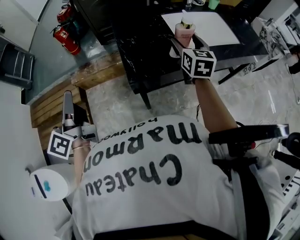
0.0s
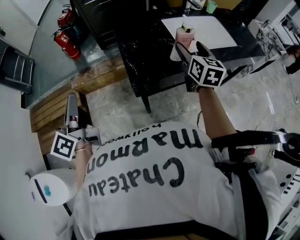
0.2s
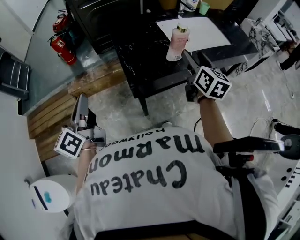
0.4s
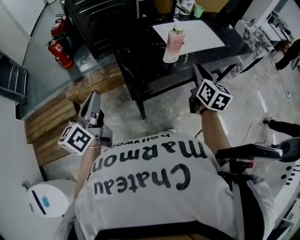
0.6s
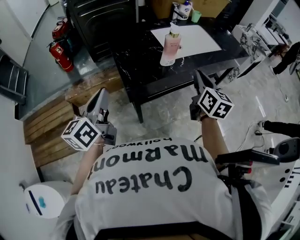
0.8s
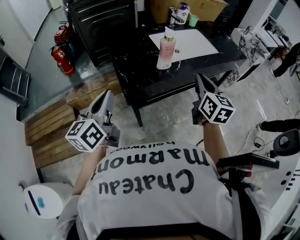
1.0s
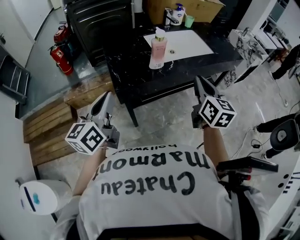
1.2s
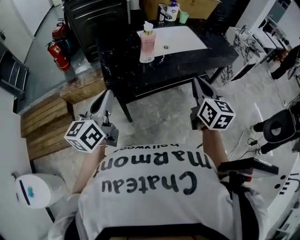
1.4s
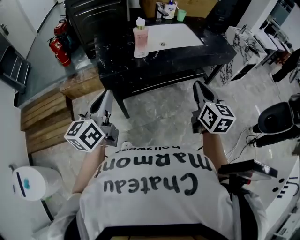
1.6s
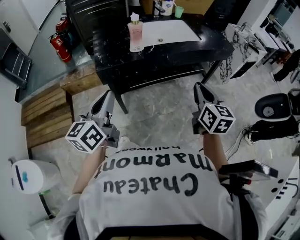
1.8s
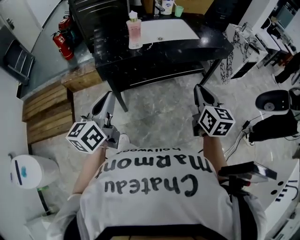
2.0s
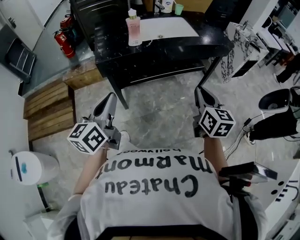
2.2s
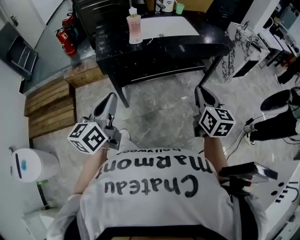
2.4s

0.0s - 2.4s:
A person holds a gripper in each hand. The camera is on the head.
0.0s - 1.2s: The left gripper moves to the right, some 20 cm, and rotates about 30 degrees. The right gripper travels backward and to the right by about 25 cm, and closes its fingers.
1.2s - 2.4s: Both grippers move to the right and backward, approximately 25 cm.

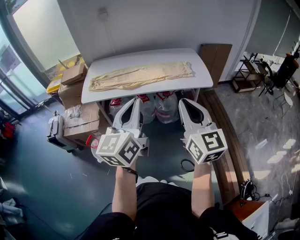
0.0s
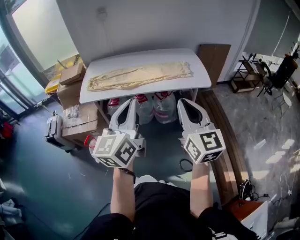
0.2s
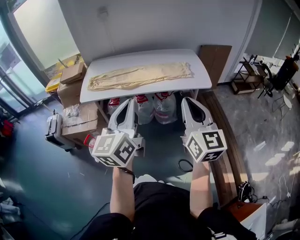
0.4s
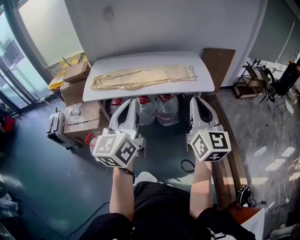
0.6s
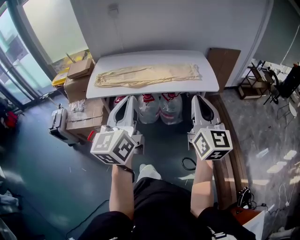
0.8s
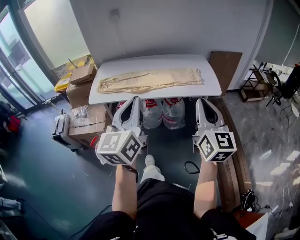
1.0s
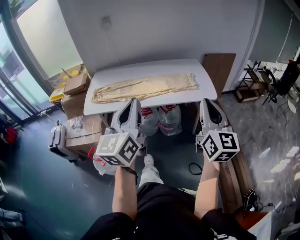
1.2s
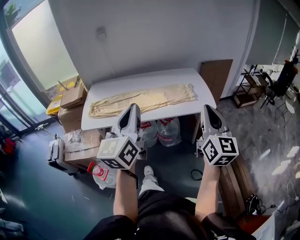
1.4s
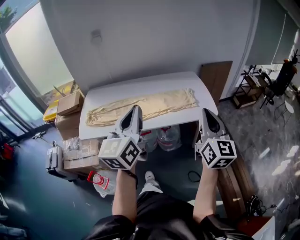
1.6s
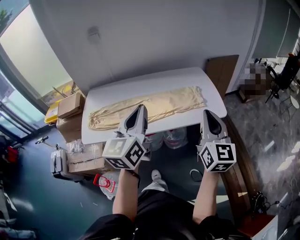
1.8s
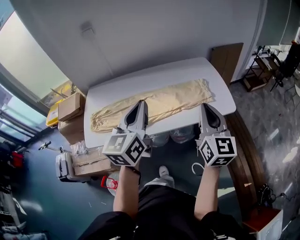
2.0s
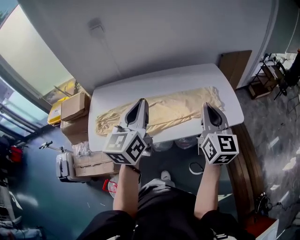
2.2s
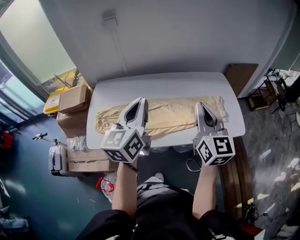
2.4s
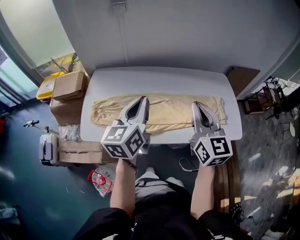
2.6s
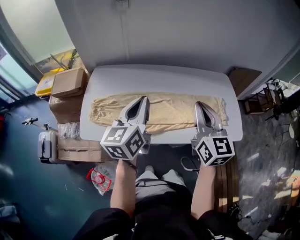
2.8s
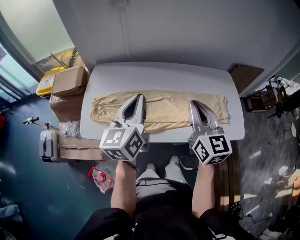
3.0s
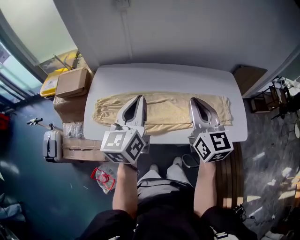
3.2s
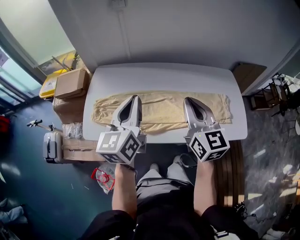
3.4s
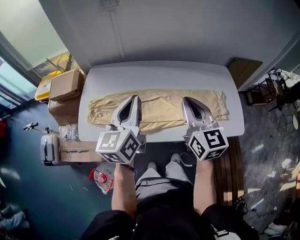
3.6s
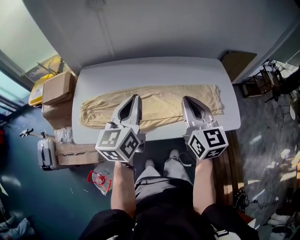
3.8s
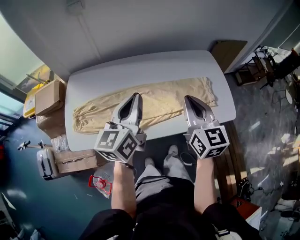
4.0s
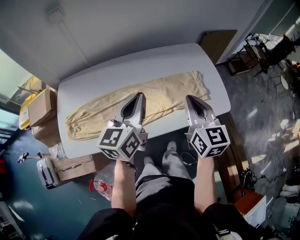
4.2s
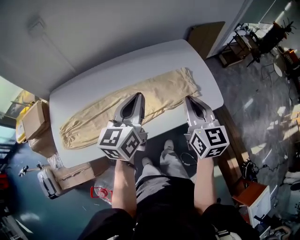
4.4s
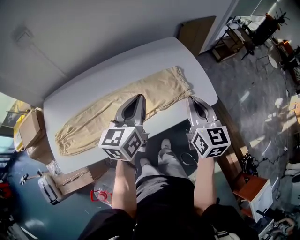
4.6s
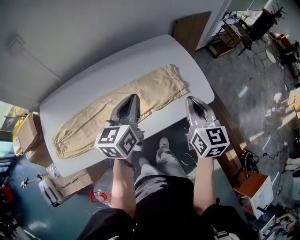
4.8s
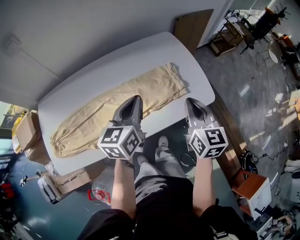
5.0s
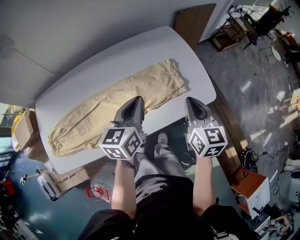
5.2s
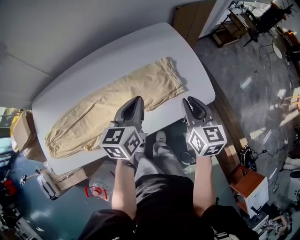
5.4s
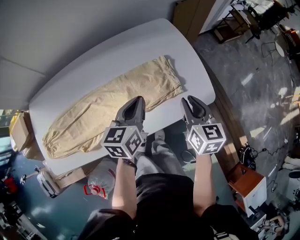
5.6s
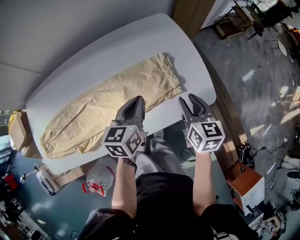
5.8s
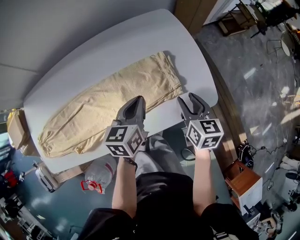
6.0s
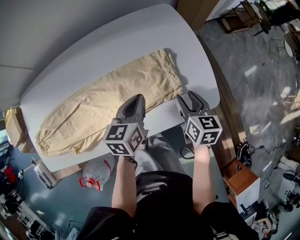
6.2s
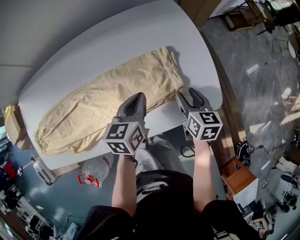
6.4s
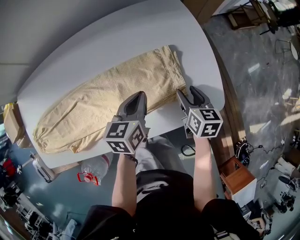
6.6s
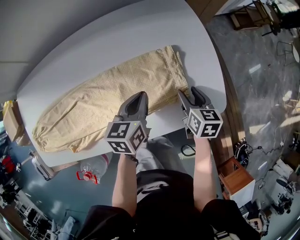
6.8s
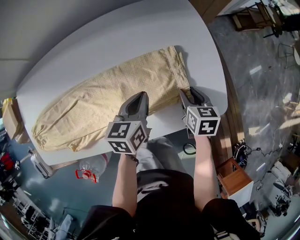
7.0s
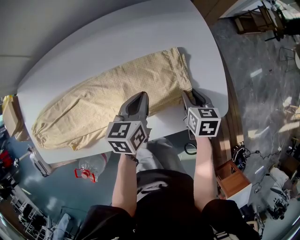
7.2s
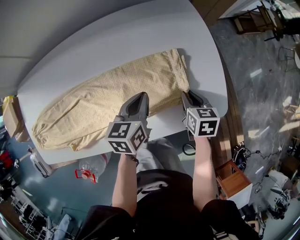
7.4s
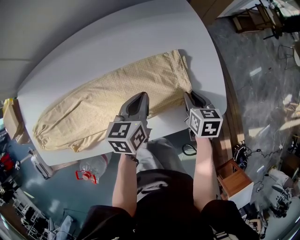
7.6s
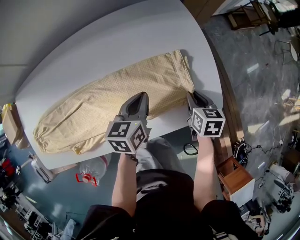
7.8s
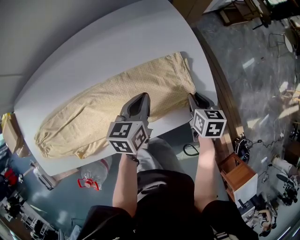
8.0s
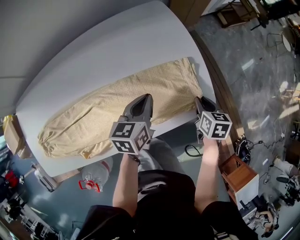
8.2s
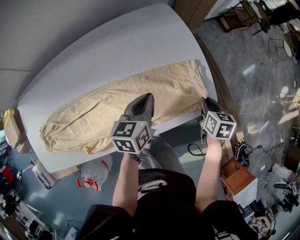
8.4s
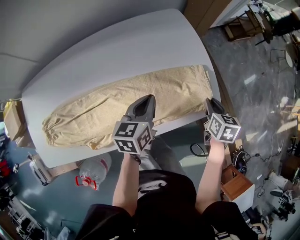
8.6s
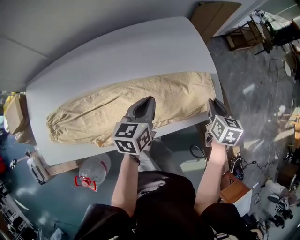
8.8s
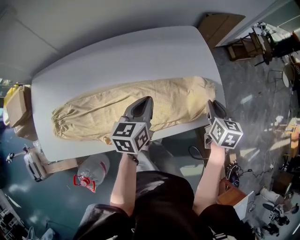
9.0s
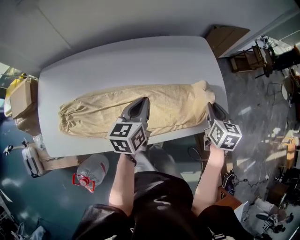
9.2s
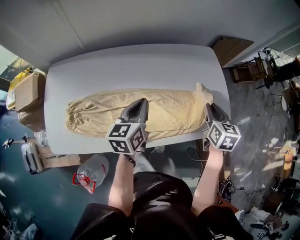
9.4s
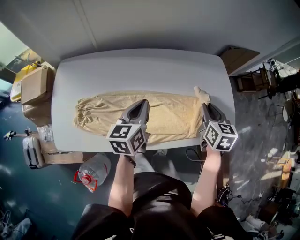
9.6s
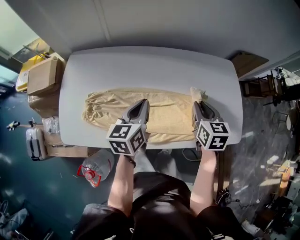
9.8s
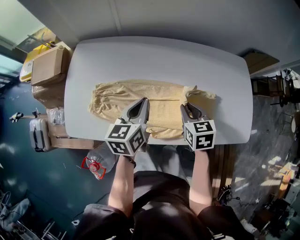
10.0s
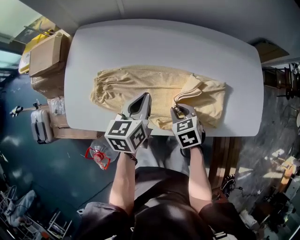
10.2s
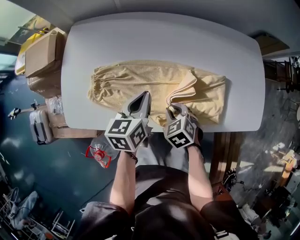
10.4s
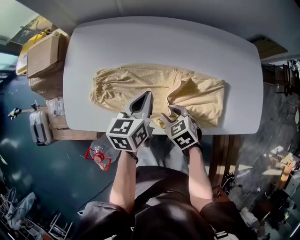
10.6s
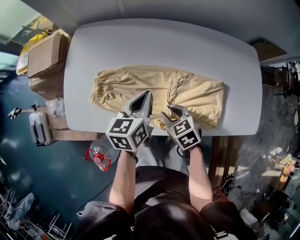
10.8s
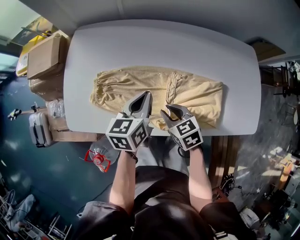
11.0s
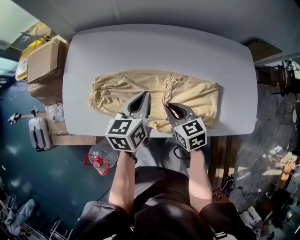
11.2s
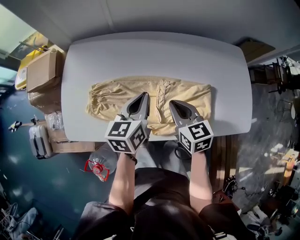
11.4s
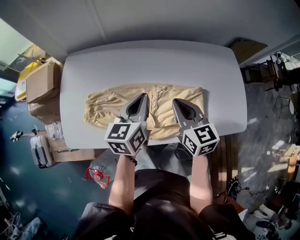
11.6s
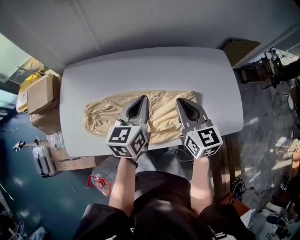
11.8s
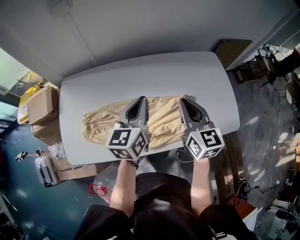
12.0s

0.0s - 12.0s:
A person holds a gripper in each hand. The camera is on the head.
0.0s - 1.6s: The two grippers go approximately 20 cm forward.
1.6s - 3.0s: The grippers both shift forward and to the left by about 35 cm. The right gripper swivels some 20 degrees.
3.0s - 4.4s: The right gripper changes place by roughly 20 cm, and swivels approximately 20 degrees; the left gripper changes place by about 25 cm, and rotates roughly 30 degrees.
4.4s - 6.0s: Both grippers travel together downward, to the right and forward, some 30 cm. The left gripper rotates roughly 20 degrees. Meanwhile the right gripper changes its angle by roughly 20 degrees, and opens.
6.0s - 7.6s: The left gripper moves downward, some 5 cm. Meanwhile the right gripper shifts about 10 cm downward, and closes up.
7.6s - 9.0s: The left gripper goes about 15 cm upward, to the left and backward. The right gripper moves upward, about 15 cm.
9.0s - 10.4s: The right gripper shifts by roughly 50 cm, and rotates around the line of its fingers by about 50 degrees, counterclockwise from behind, while the left gripper moves roughly 35 cm.
10.4s - 12.0s: The left gripper heads upward and to the right, covering roughly 20 cm, and swivels about 20 degrees. Meanwhile the right gripper travels upward and to the right by approximately 30 cm, and points its fingers roughly 50 degrees further upward.

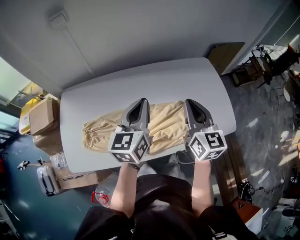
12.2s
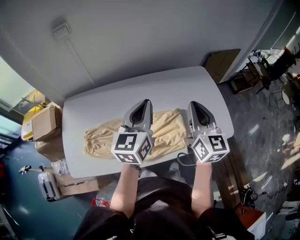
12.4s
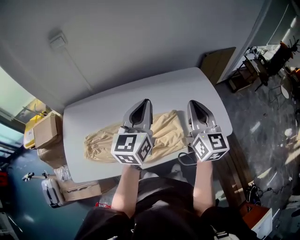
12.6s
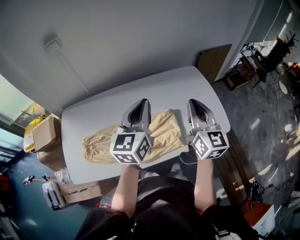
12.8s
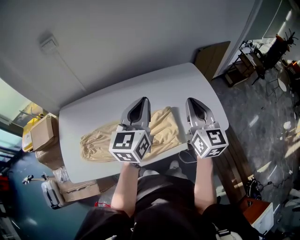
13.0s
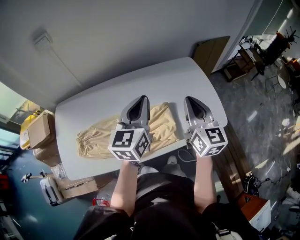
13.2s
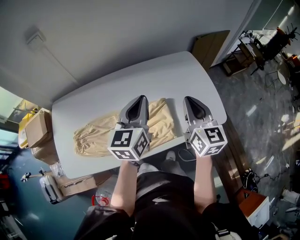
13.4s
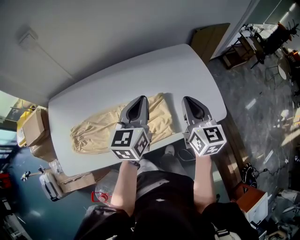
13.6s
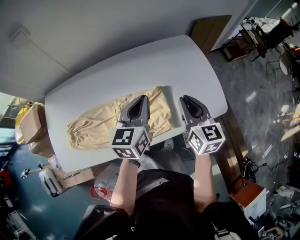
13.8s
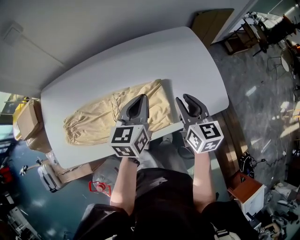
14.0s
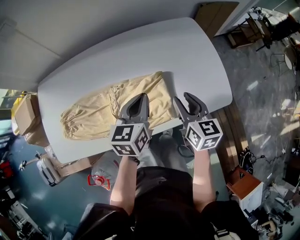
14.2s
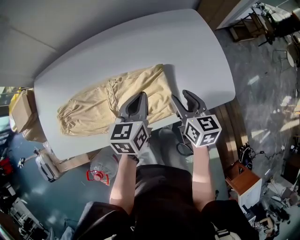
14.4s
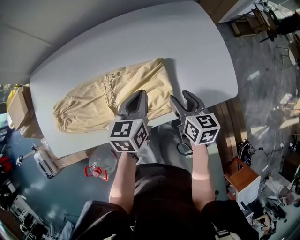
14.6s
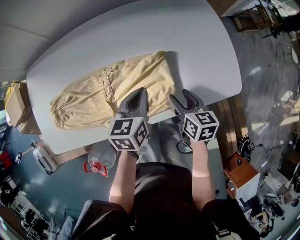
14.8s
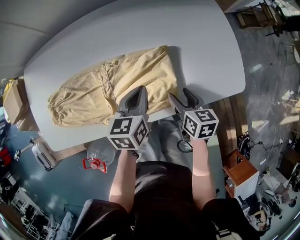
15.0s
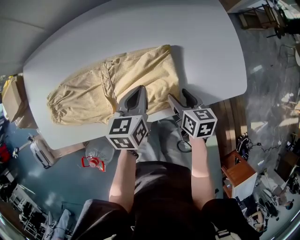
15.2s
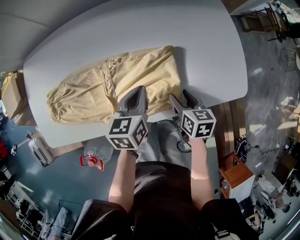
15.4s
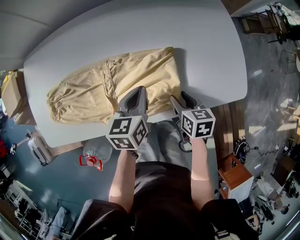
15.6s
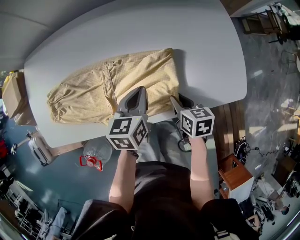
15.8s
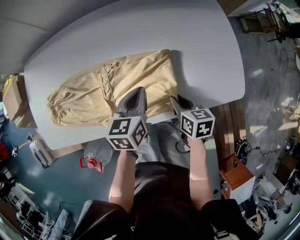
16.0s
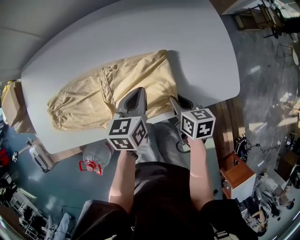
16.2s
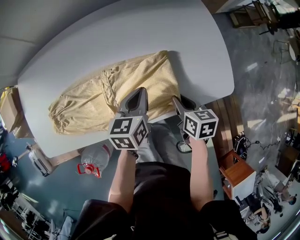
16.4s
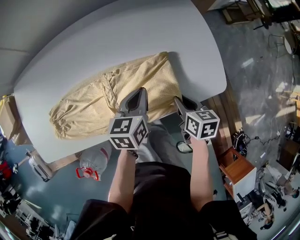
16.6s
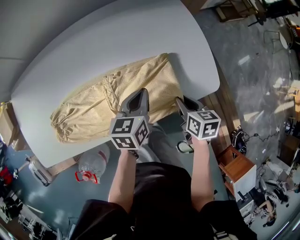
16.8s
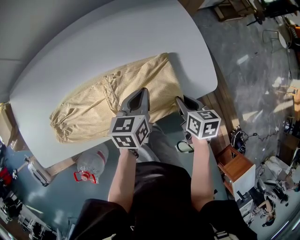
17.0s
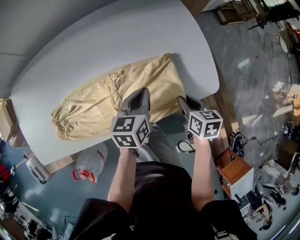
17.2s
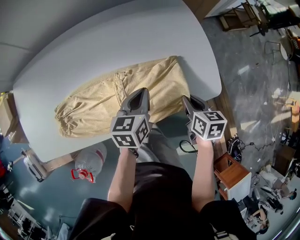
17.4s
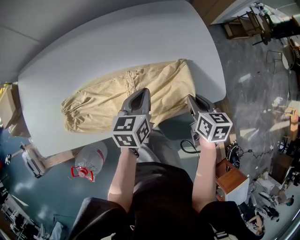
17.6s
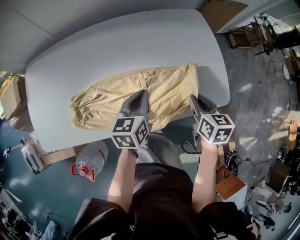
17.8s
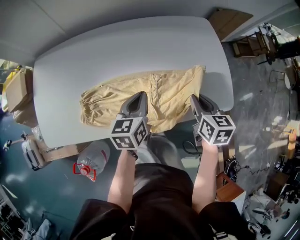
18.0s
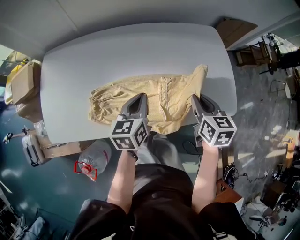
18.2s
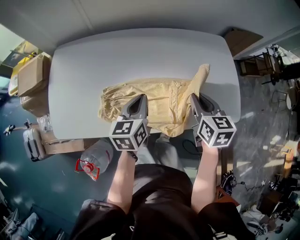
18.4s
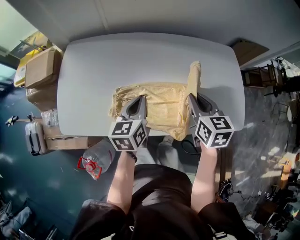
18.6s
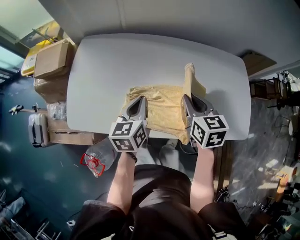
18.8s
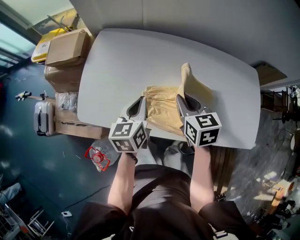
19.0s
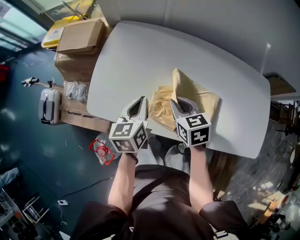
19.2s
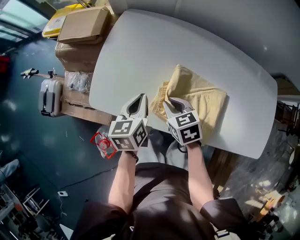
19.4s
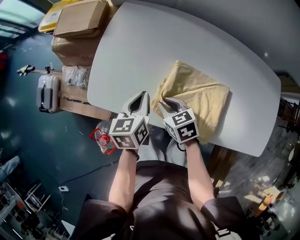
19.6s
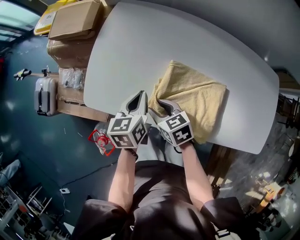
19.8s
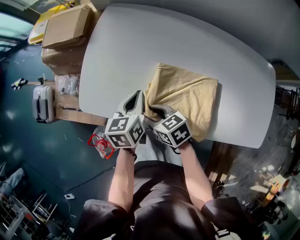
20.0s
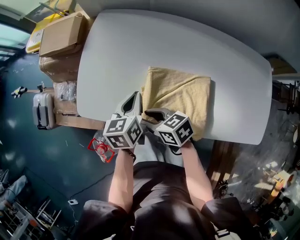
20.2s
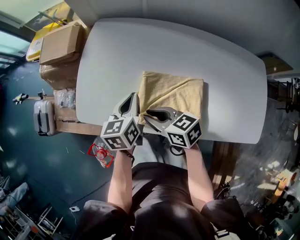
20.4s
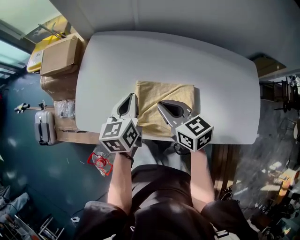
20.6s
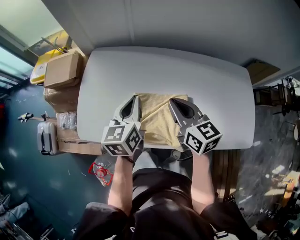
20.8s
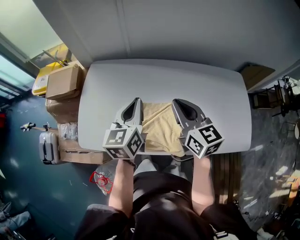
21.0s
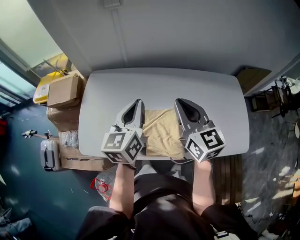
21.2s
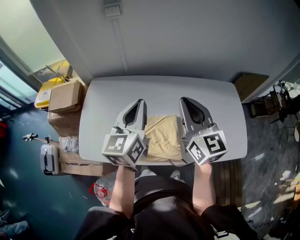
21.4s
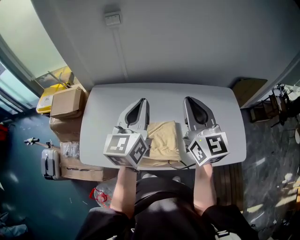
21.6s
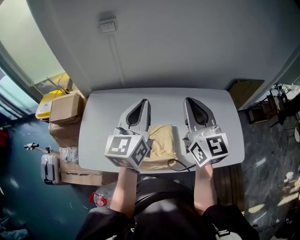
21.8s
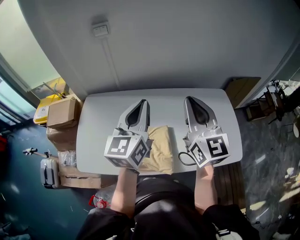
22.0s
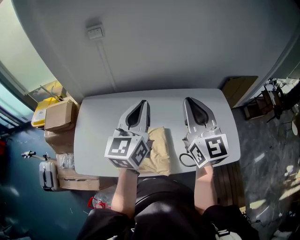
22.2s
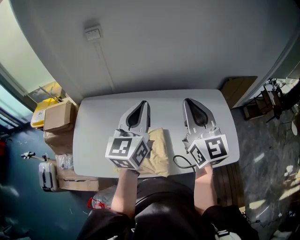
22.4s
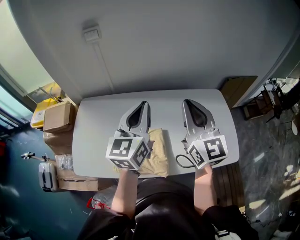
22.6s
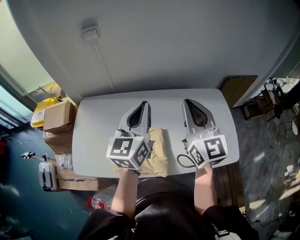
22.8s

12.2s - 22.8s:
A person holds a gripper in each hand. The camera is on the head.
12.2s - 13.8s: The left gripper travels to the right by some 15 cm. The right gripper shifts approximately 15 cm to the right and downward.
13.8s - 15.2s: Both grippers travel together downward, about 20 cm. The left gripper rotates roughly 20 degrees. Meanwhile the right gripper turns by some 30 degrees, and opens.
15.2s - 16.8s: Both grippers move to the right, roughly 15 cm. The right gripper closes.
16.8s - 18.2s: The right gripper shifts about 25 cm to the left and upward, and turns by some 20 degrees; the left gripper is displaced to the left by approximately 20 cm.
18.2s - 19.8s: The left gripper ends up roughly 35 cm from where it was, and rotates roughly 30 degrees. Meanwhile the right gripper changes place by approximately 50 cm, turns by roughly 50 degrees, and opens up.
19.8s - 21.2s: Both grippers move upward, about 30 cm. The left gripper rotates approximately 30 degrees; the right gripper points its fingers about 40 degrees further upward, and closes.
21.2s - 22.8s: The grippers both shift to the right and upward by approximately 15 cm.
